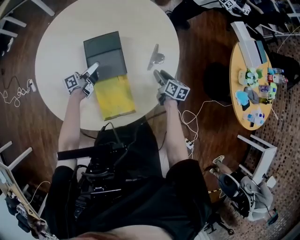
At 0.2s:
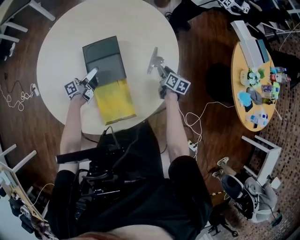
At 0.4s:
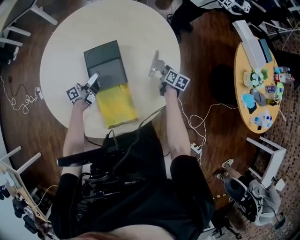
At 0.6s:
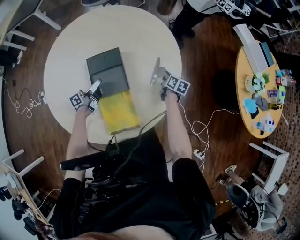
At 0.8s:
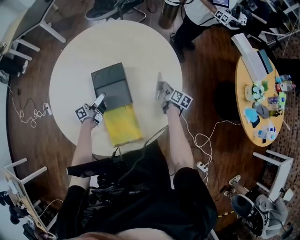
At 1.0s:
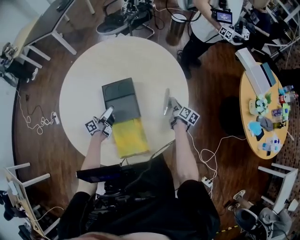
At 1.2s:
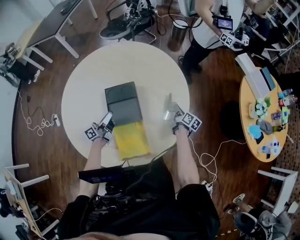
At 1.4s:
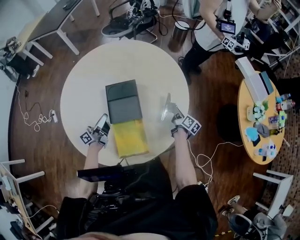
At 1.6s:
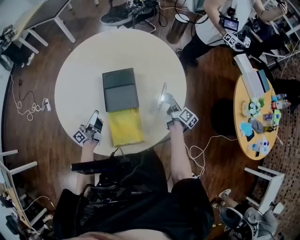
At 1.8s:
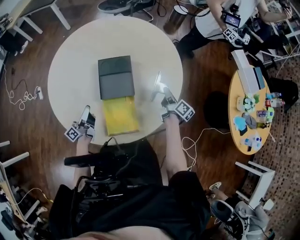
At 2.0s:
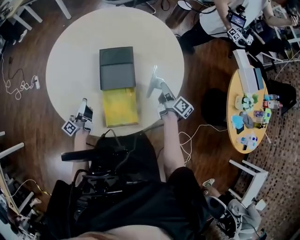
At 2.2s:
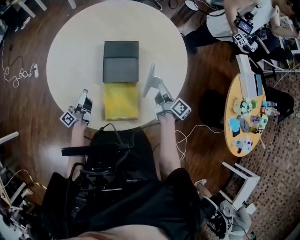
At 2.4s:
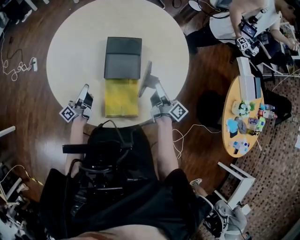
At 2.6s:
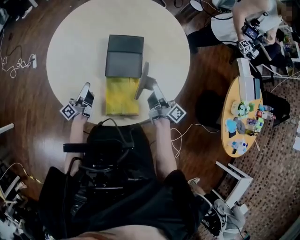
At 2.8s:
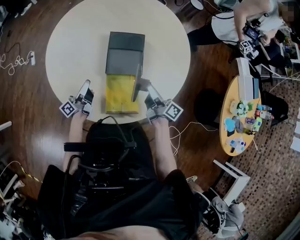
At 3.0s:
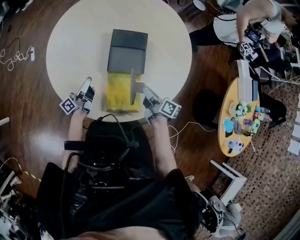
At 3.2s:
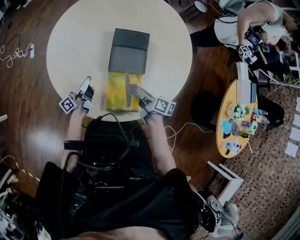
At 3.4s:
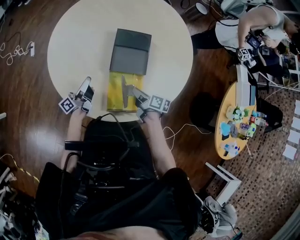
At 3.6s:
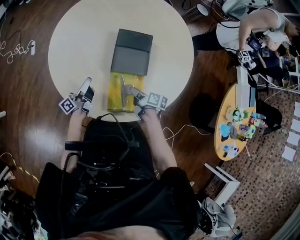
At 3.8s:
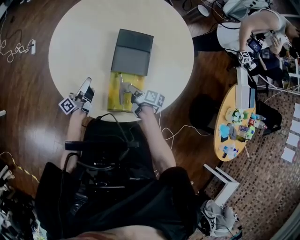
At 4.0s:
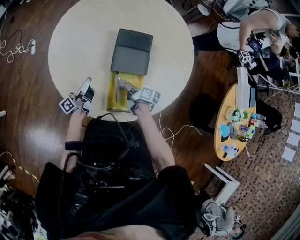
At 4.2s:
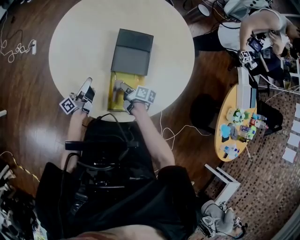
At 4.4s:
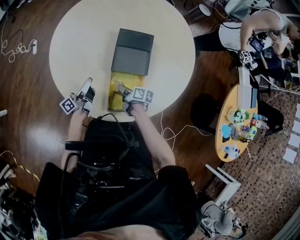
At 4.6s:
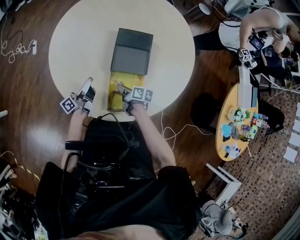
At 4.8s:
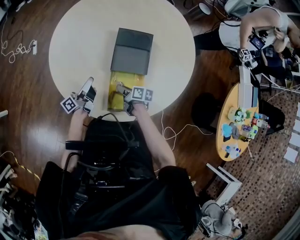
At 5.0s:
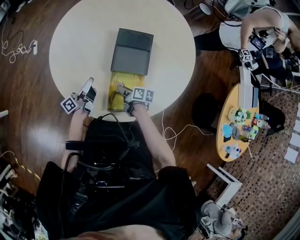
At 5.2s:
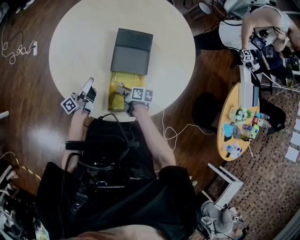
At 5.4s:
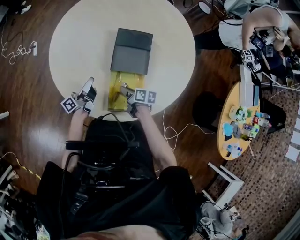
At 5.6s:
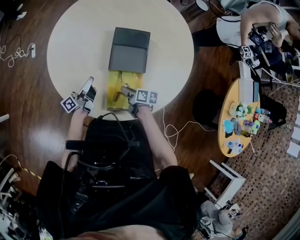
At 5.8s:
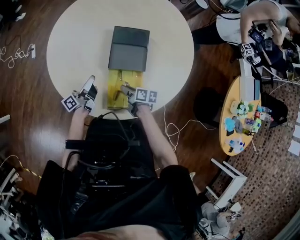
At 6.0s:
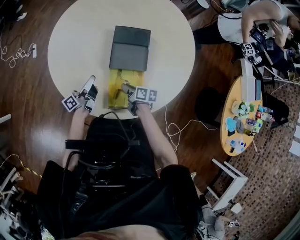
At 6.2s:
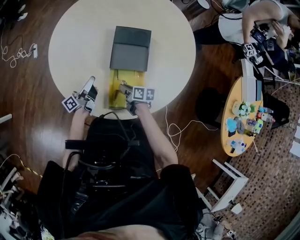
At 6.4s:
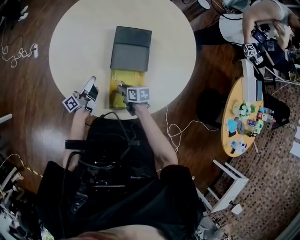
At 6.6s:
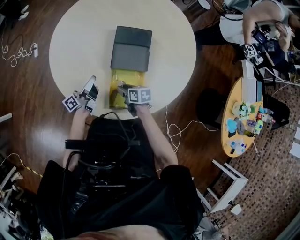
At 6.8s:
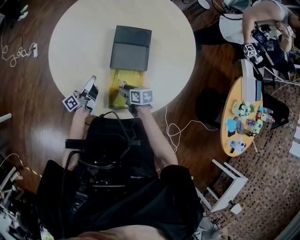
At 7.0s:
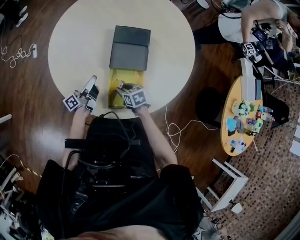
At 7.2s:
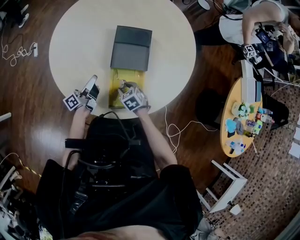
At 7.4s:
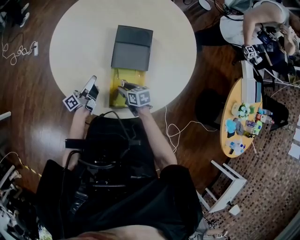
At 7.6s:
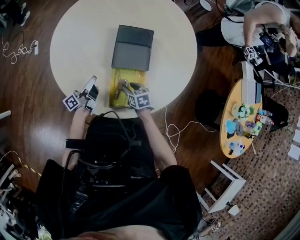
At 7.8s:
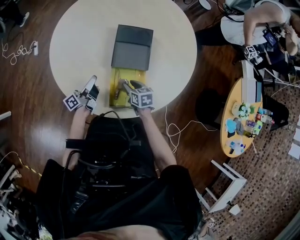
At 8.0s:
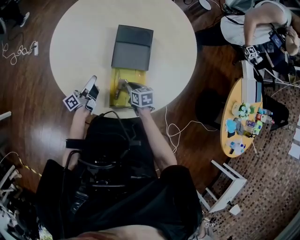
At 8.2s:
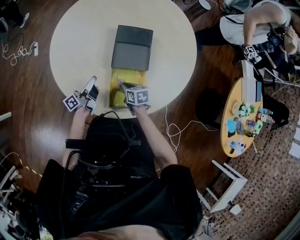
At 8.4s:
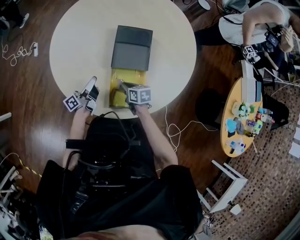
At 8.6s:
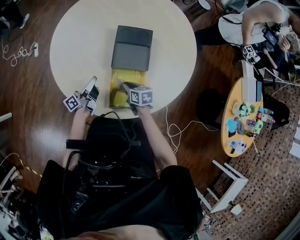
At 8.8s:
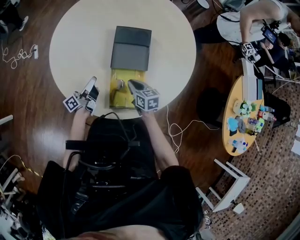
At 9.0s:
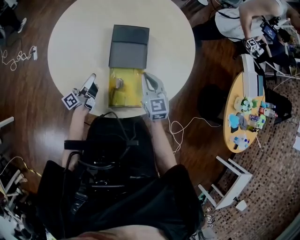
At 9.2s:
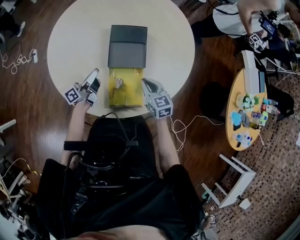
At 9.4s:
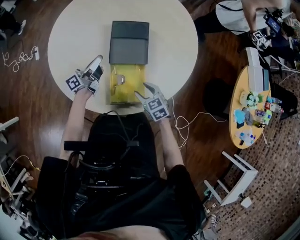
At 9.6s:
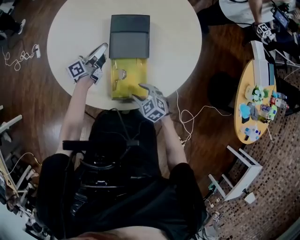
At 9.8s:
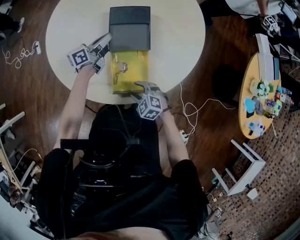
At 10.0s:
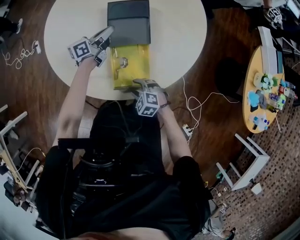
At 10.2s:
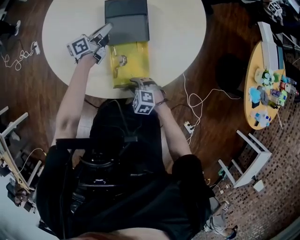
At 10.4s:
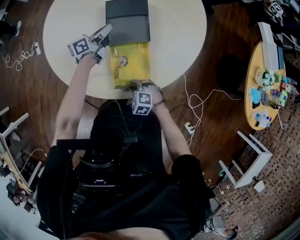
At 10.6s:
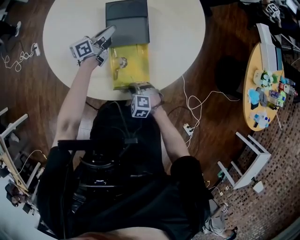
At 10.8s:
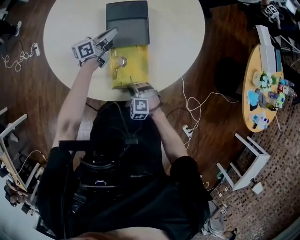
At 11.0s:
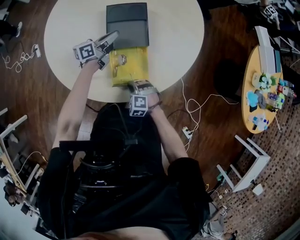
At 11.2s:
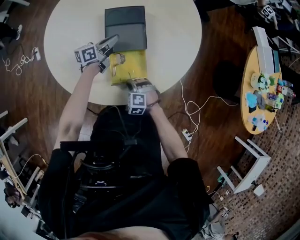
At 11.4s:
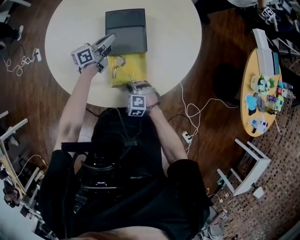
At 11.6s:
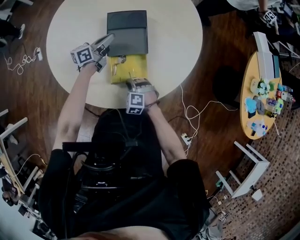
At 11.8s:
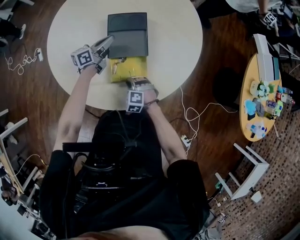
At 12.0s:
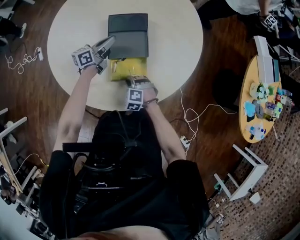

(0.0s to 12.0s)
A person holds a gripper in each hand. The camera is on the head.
0.0s - 1.6s: The left gripper moves backward and to the left, roughly 15 cm, and turns by approximately 20 degrees. Meanwhile the right gripper turns by approximately 30 degrees, and closes.
1.6s - 3.0s: The left gripper goes approximately 5 cm backward. Meanwhile the right gripper heads to the left and backward, covering some 25 cm, and rotates roughly 30 degrees.
3.0s - 4.4s: The right gripper goes approximately 15 cm downward and to the left, and turns by roughly 20 degrees.
4.4s - 6.0s: There are only small adjustments of the grippers.
6.0s - 7.6s: The right gripper turns by approximately 30 degrees, and opens its fingers.
7.6s - 9.0s: The right gripper goes some 20 cm upward and to the right, turns by about 40 degrees, and closes up.
9.0s - 10.4s: The left gripper goes some 15 cm forward and to the right, and rotates approximately 30 degrees. Meanwhile the right gripper shifts about 30 cm downward, backward and to the left, tilts its fingers some 40 degrees downward, and opens.
10.4s - 12.0s: The right gripper is displaced forward by about 10 cm.

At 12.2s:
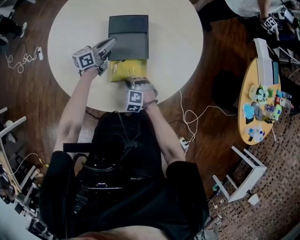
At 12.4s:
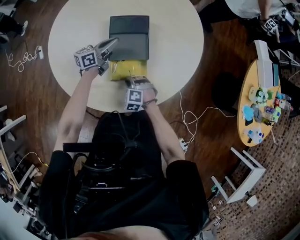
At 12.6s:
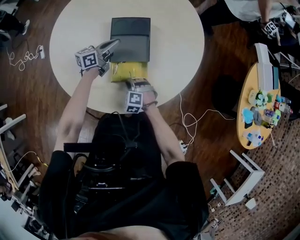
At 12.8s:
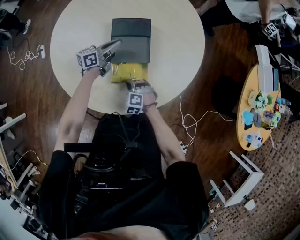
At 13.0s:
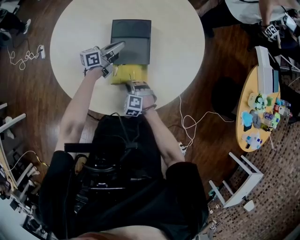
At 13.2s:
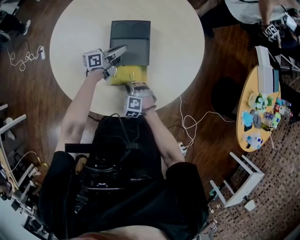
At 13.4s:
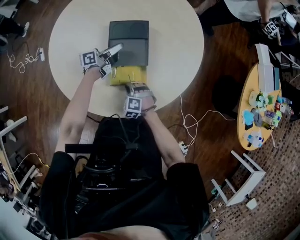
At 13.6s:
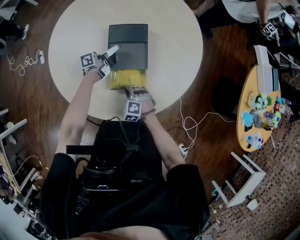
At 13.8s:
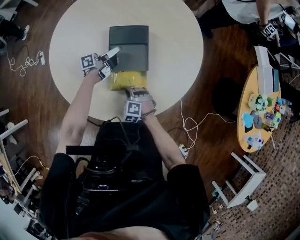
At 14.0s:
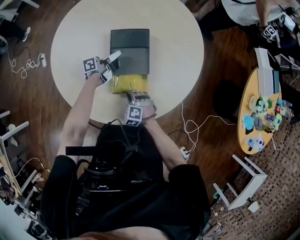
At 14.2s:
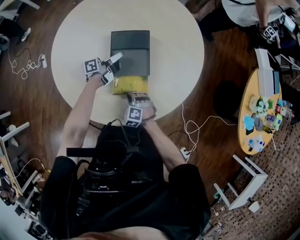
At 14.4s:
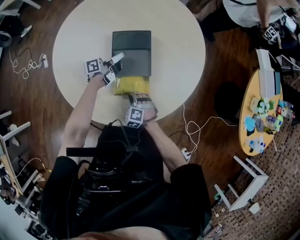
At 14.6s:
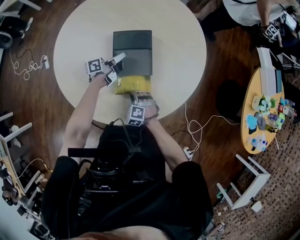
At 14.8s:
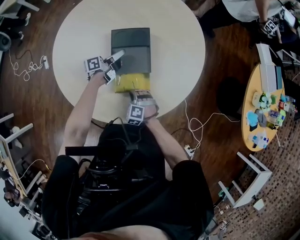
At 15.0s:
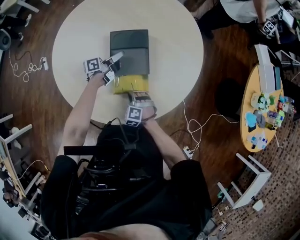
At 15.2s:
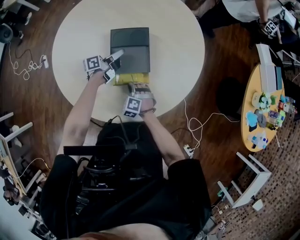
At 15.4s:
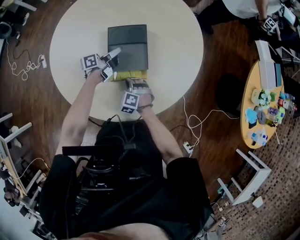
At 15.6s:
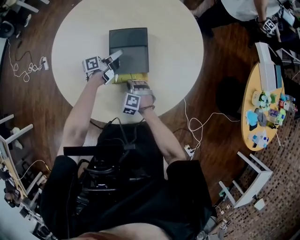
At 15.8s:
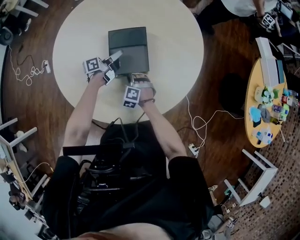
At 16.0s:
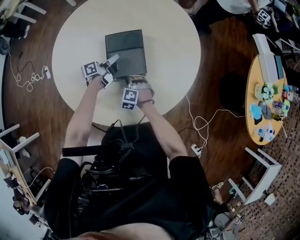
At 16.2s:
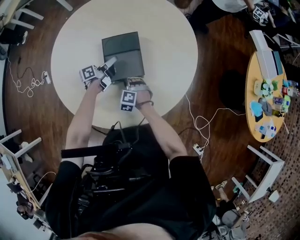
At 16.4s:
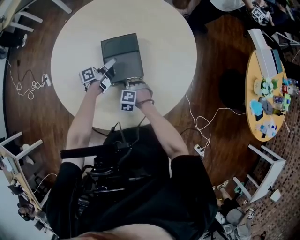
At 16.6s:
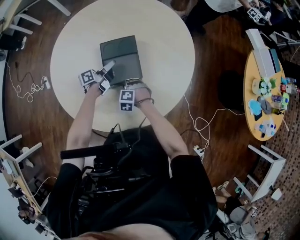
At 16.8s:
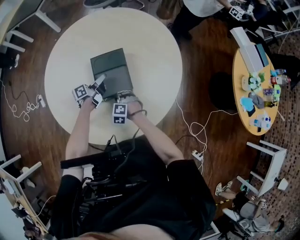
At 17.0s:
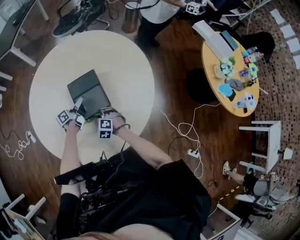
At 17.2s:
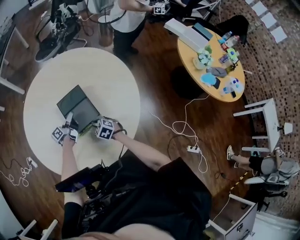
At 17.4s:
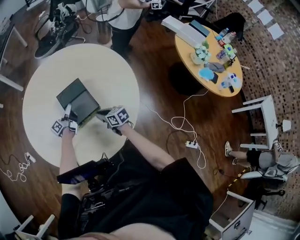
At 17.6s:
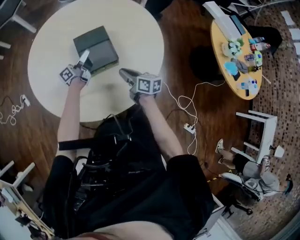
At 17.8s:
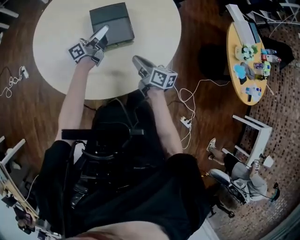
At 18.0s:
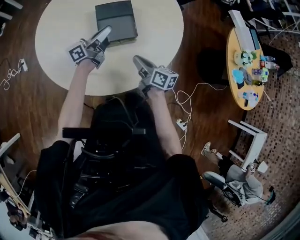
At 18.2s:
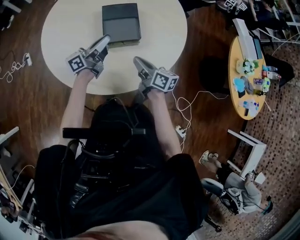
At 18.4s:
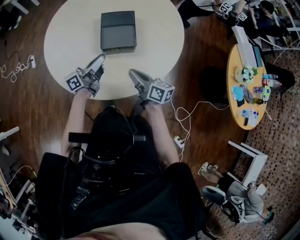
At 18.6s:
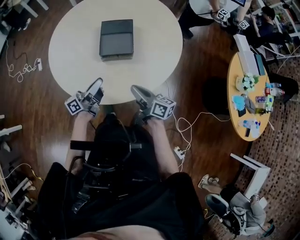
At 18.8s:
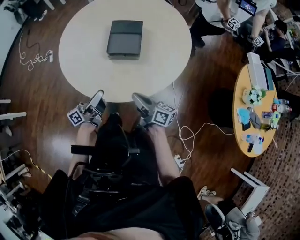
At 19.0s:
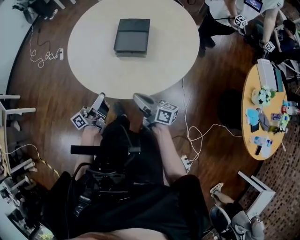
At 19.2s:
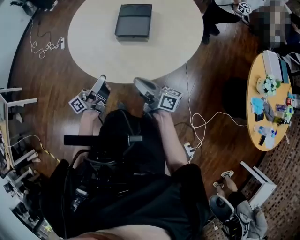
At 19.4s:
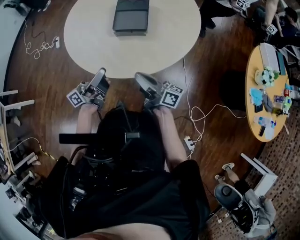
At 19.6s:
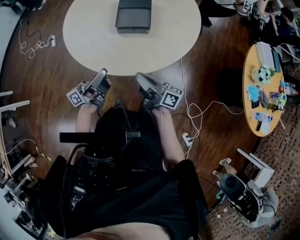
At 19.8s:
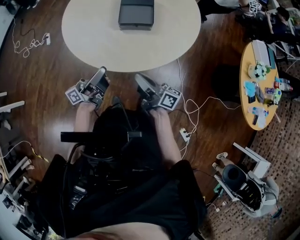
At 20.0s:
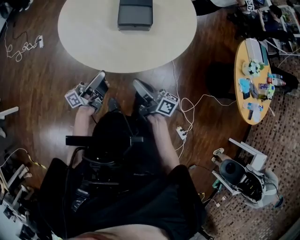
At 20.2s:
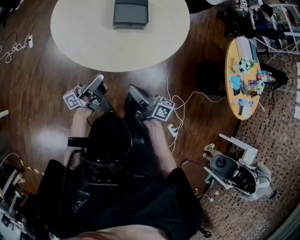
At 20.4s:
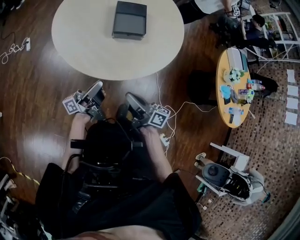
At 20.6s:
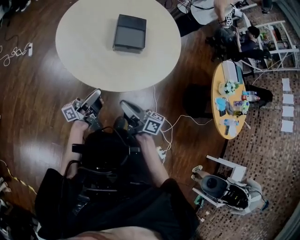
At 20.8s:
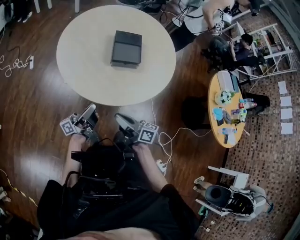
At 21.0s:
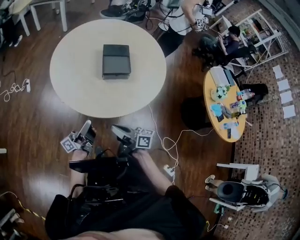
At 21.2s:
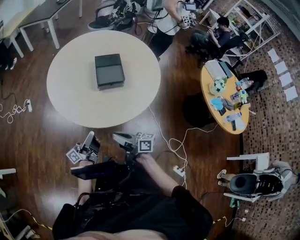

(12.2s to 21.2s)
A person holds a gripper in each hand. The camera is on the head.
12.2s - 13.8s: The left gripper changes its angle by some 30 degrees.
13.8s - 15.2s: The grippers make only small movements.
15.2s - 16.6s: The grippers stay close to where they were, moving slightly.
16.6s - 18.2s: The right gripper moves upward, to the right and backward, about 25 cm, and rolls clockwise, seen from behind, by some 90 degrees, while the left gripper is displaced backward and upward by about 20 cm, and changes its angle by about 30 degrees.
18.2s - 19.8s: The grippers both shift backward by approximately 20 cm. The right gripper rotates roughly 30 degrees.
19.8s - 21.2s: The left gripper ends up about 10 cm from where it was. The right gripper travels to the left and backward by roughly 10 cm.

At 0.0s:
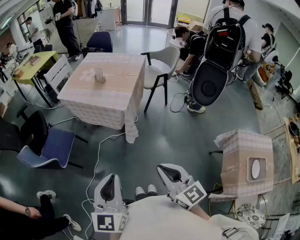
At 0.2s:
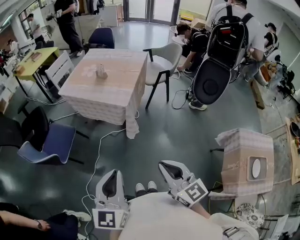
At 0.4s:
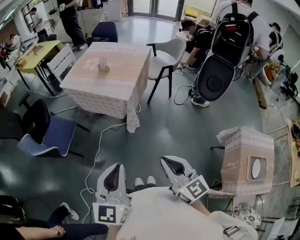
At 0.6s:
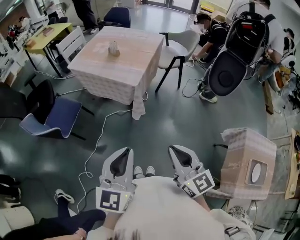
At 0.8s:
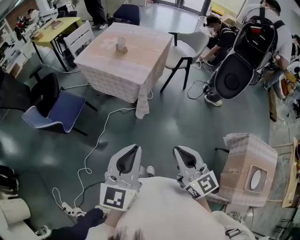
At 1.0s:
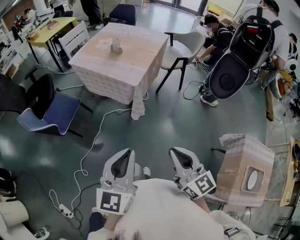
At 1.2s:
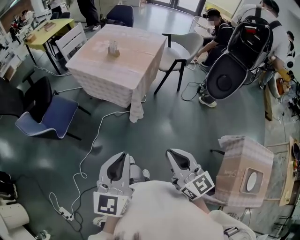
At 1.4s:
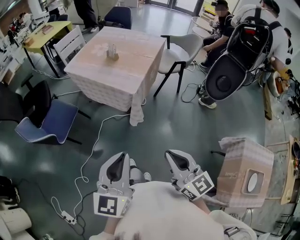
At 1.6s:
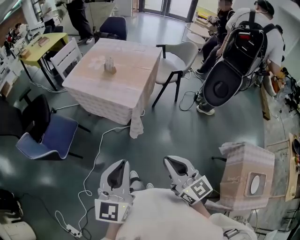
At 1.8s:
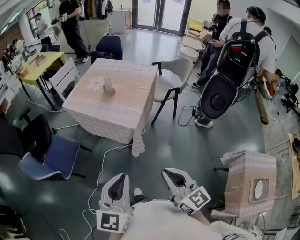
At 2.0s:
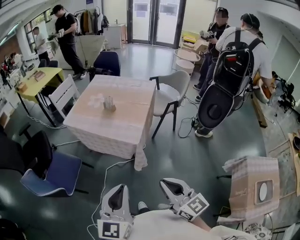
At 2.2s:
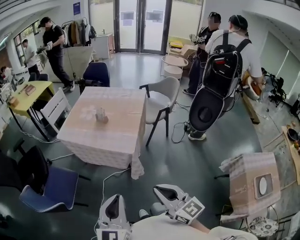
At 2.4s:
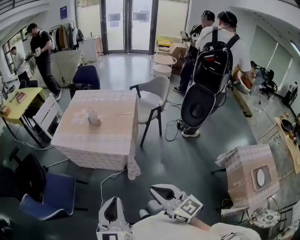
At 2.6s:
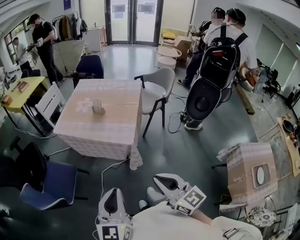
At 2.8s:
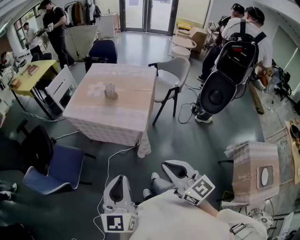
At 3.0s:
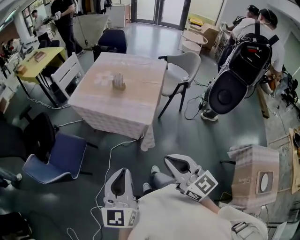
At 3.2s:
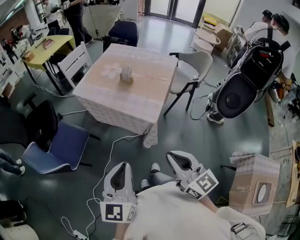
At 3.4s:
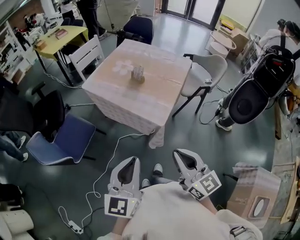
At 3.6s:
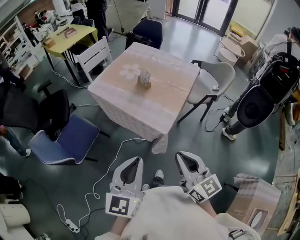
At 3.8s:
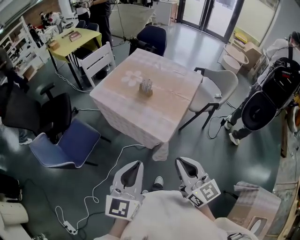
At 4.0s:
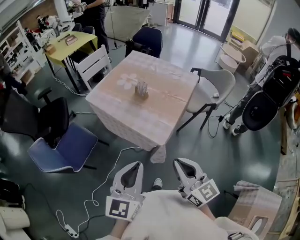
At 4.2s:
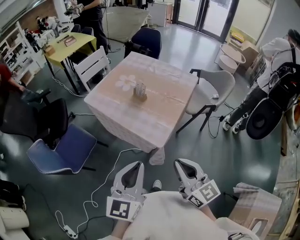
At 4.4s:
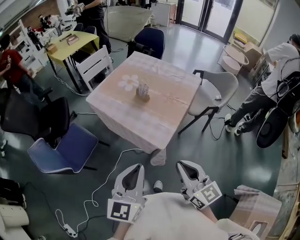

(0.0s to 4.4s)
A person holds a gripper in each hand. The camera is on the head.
0.0s - 1.4s: The left gripper moves forward and to the right, about 10 cm; the right gripper goes about 5 cm forward.
1.4s - 3.0s: The left gripper moves to the left and forward, approximately 15 cm. The right gripper heads forward and to the left, covering about 20 cm.
3.0s - 4.4s: Both grippers travel together forward and to the right, approximately 15 cm.
